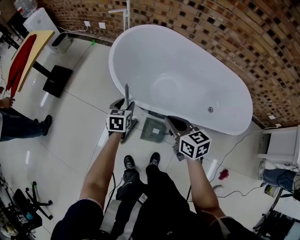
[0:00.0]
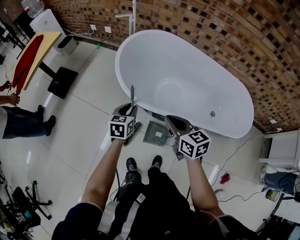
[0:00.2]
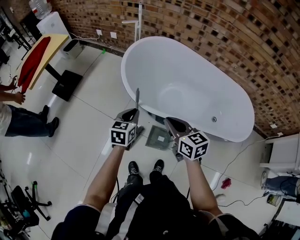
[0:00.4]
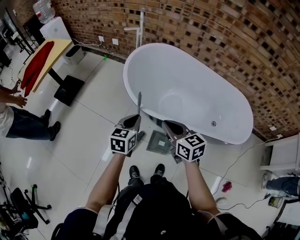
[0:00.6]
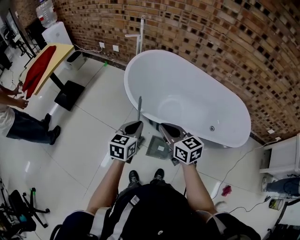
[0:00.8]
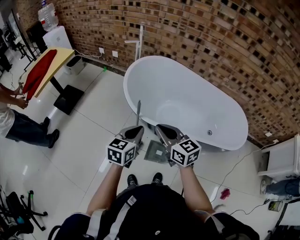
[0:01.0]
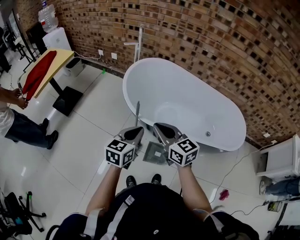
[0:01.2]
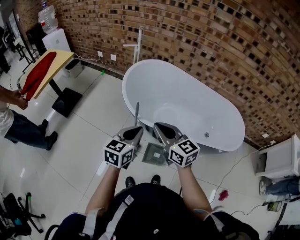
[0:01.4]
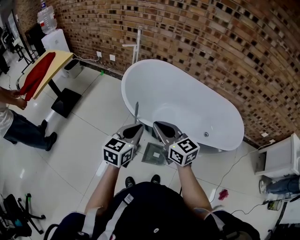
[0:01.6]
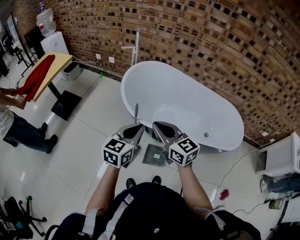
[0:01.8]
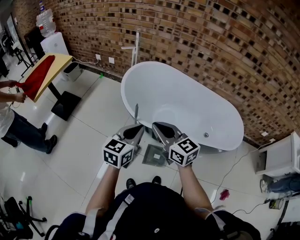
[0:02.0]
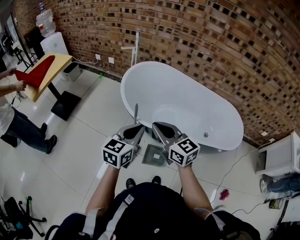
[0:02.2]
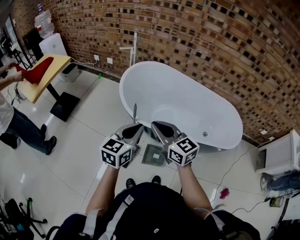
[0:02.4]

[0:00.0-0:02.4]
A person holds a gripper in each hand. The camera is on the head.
0:00.0 to 0:01.2: The right gripper goes some 15 cm upward and to the left, and turns by roughly 20 degrees. Meanwhile the left gripper heads upward and backward, covering about 25 cm, swivels about 20 degrees, and closes.
0:01.2 to 0:02.4: The left gripper shifts some 5 cm upward.

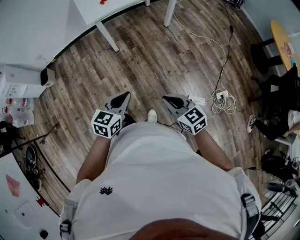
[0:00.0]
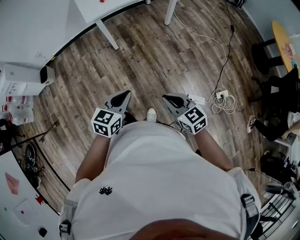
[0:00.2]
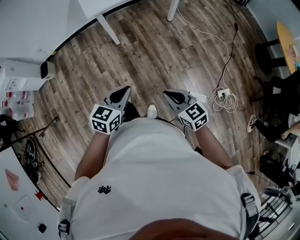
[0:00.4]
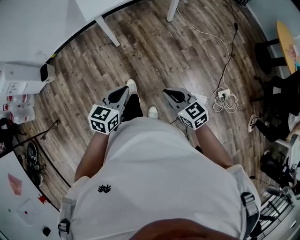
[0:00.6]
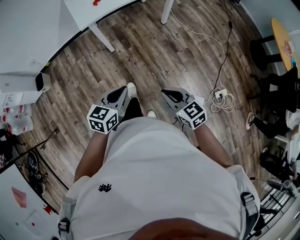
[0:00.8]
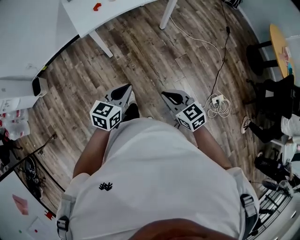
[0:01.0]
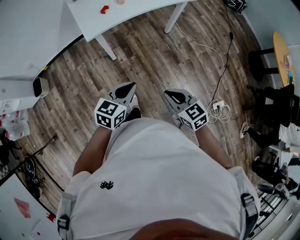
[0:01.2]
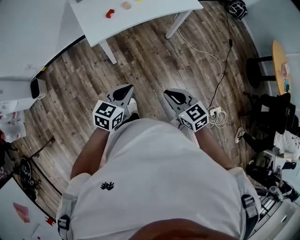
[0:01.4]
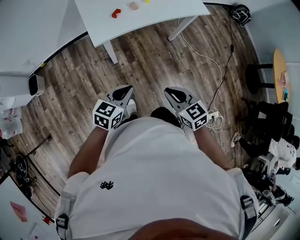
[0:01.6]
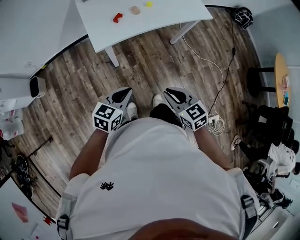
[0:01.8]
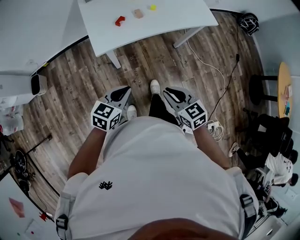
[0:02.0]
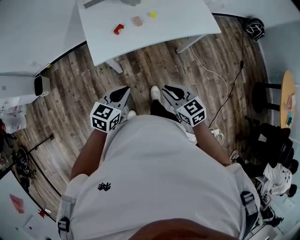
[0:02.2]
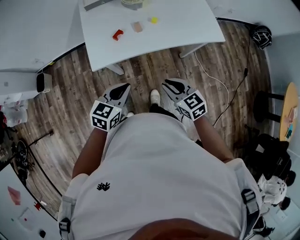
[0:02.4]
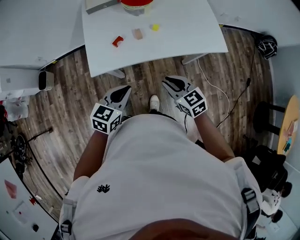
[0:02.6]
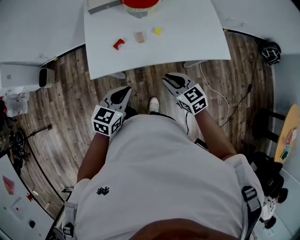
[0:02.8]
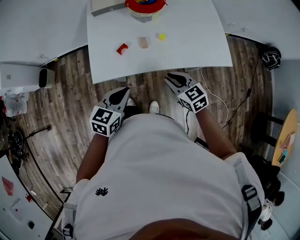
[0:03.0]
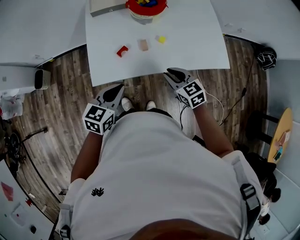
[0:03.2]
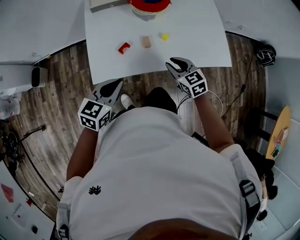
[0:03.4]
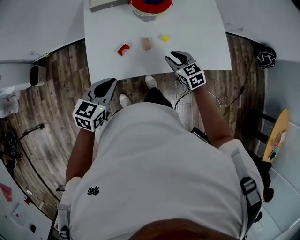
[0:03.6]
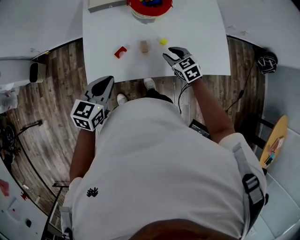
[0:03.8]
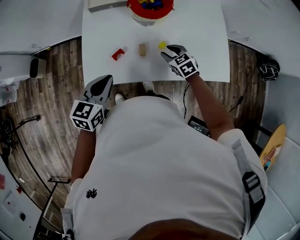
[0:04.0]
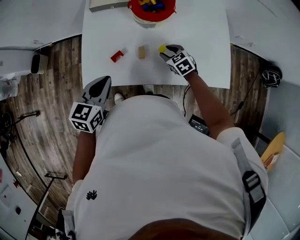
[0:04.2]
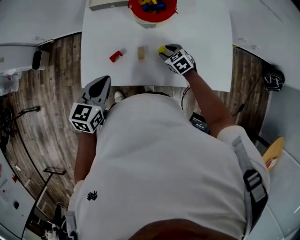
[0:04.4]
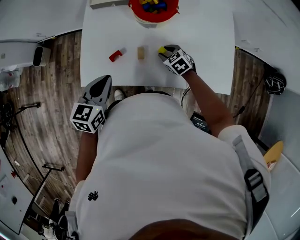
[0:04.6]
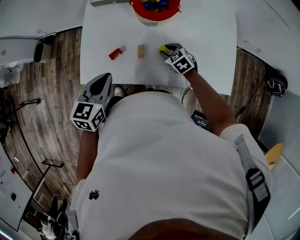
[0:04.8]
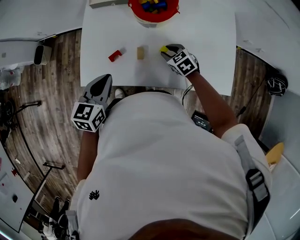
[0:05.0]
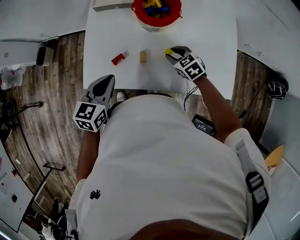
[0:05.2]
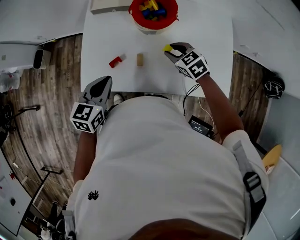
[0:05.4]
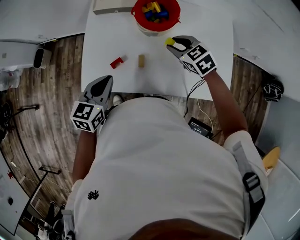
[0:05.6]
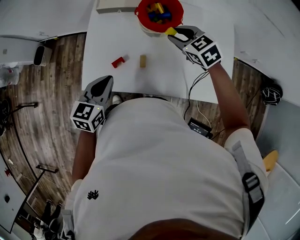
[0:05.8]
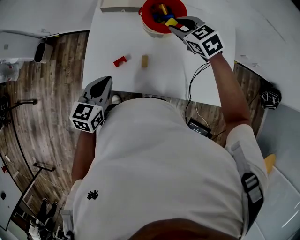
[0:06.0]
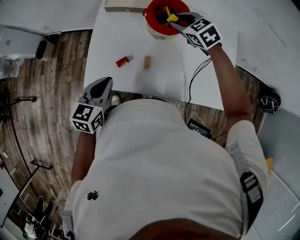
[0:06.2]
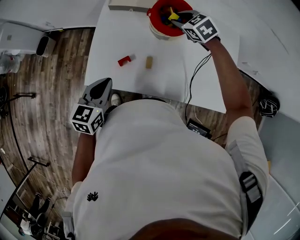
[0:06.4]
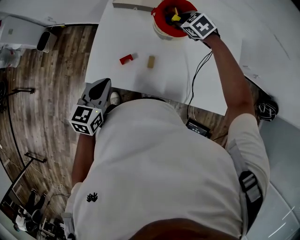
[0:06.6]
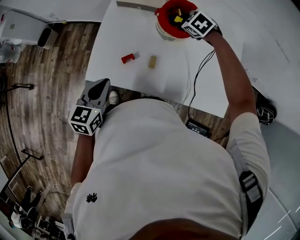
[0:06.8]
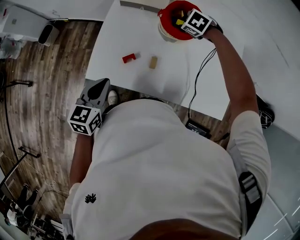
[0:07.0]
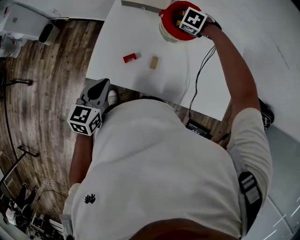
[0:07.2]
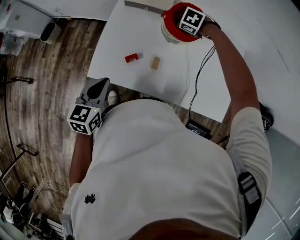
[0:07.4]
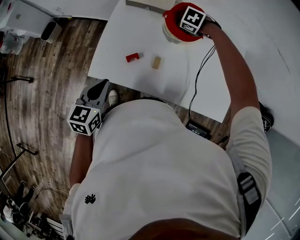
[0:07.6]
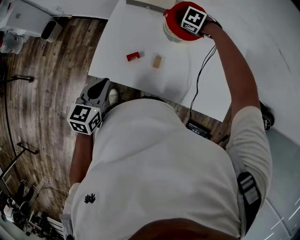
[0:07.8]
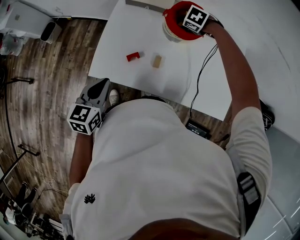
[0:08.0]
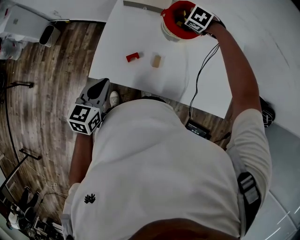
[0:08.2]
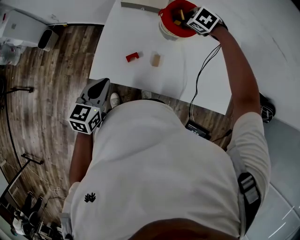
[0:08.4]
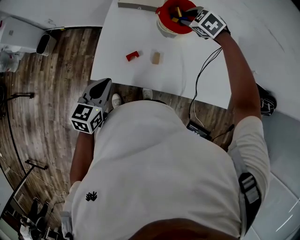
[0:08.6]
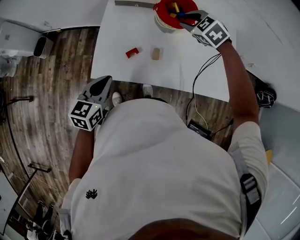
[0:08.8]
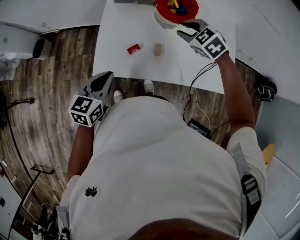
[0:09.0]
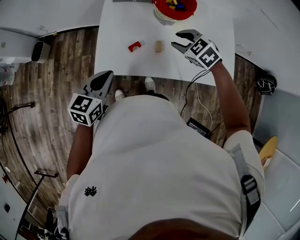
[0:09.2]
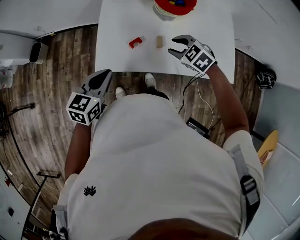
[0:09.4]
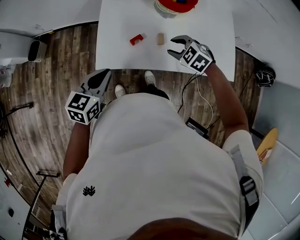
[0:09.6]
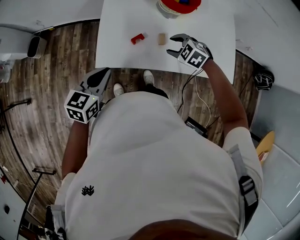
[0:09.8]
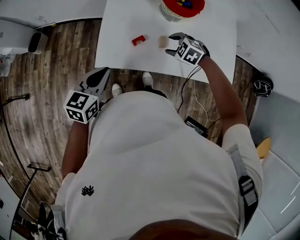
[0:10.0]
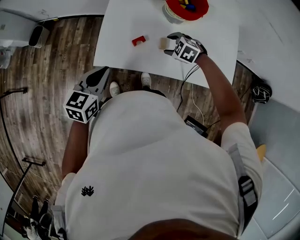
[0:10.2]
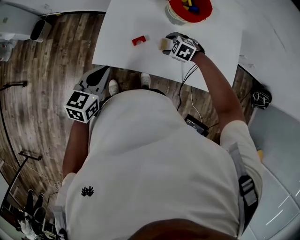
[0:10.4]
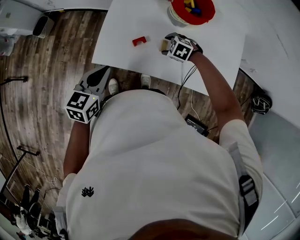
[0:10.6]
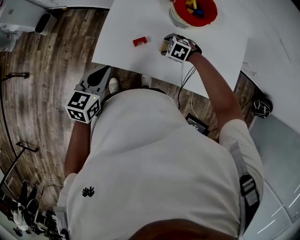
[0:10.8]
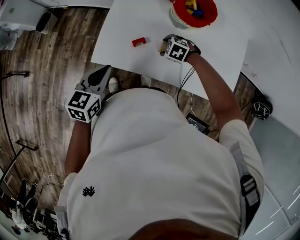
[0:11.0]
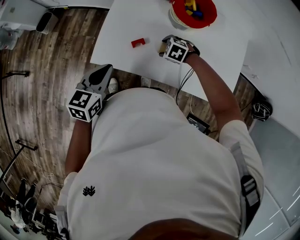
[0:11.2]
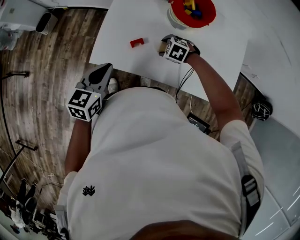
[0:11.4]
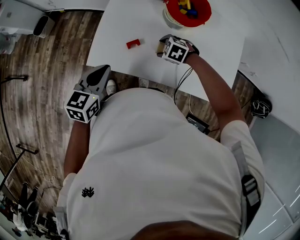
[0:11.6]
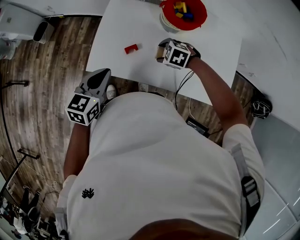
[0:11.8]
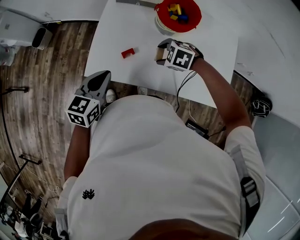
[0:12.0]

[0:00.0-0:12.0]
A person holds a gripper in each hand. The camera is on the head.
0:00.0 to 0:01.6: Both grippers travel together forward, some 30 cm.
0:01.6 to 0:03.0: The grippers both shift forward by some 30 cm. The left gripper changes its angle by about 20 degrees.
0:03.0 to 0:04.4: The right gripper is displaced forward and downward by some 30 cm, and changes its angle by roughly 30 degrees. The left gripper is displaced forward by some 15 cm.
0:04.4 to 0:06.0: The right gripper travels upward and forward by some 25 cm.
0:06.0 to 0:07.6: The right gripper is displaced downward by some 15 cm, and angles its fingers downward, by approximately 40 degrees, while the left gripper moves some 5 cm.
0:07.6 to 0:09.0: The right gripper shifts by some 20 cm, and points its fingers roughly 30 degrees further upward.
0:09.0 to 0:10.4: The right gripper is displaced downward by about 20 cm, swivels about 30 degrees, and opens.
0:10.4 to 0:12.0: The right gripper travels upward by some 5 cm. The left gripper moves roughly 5 cm.

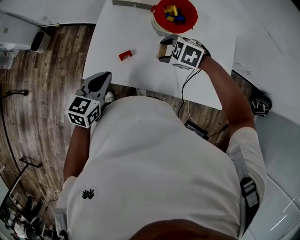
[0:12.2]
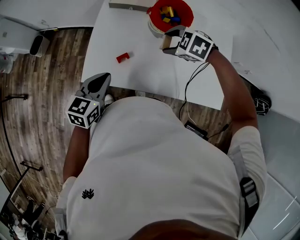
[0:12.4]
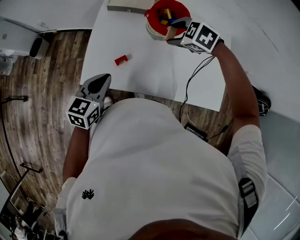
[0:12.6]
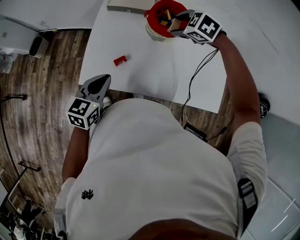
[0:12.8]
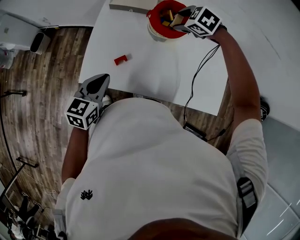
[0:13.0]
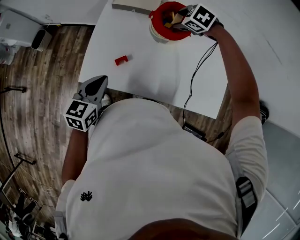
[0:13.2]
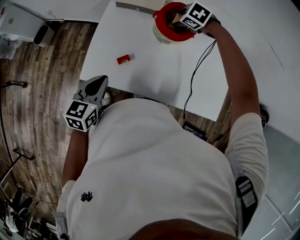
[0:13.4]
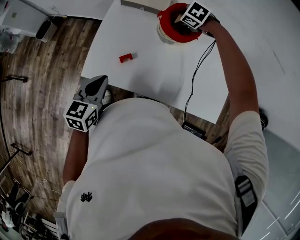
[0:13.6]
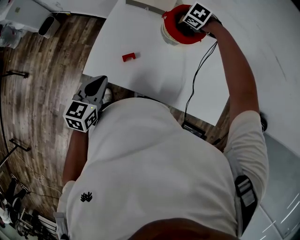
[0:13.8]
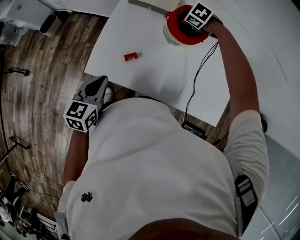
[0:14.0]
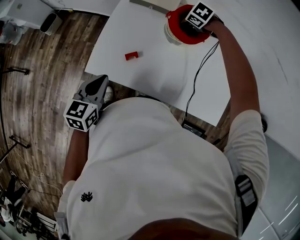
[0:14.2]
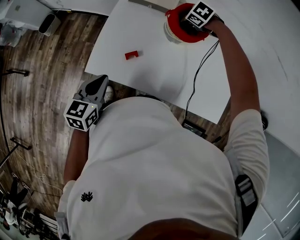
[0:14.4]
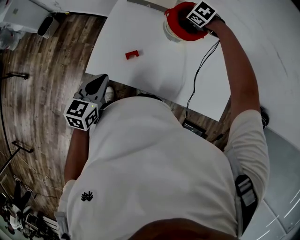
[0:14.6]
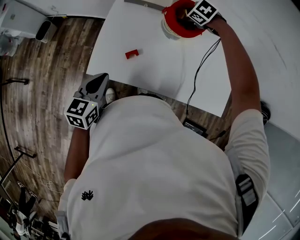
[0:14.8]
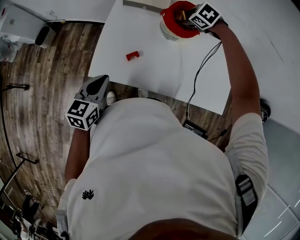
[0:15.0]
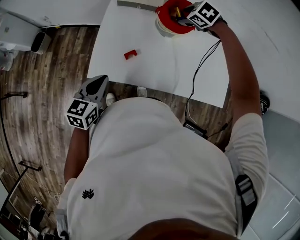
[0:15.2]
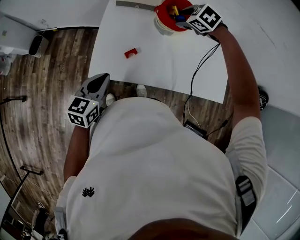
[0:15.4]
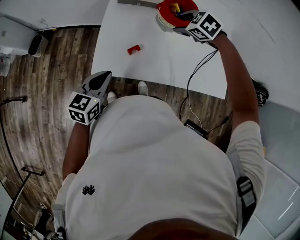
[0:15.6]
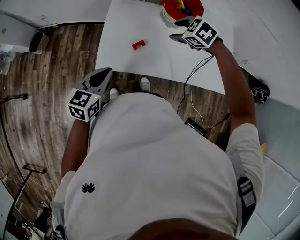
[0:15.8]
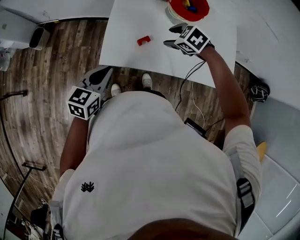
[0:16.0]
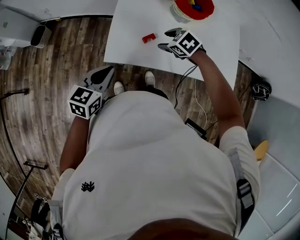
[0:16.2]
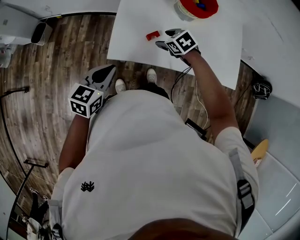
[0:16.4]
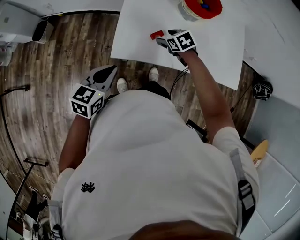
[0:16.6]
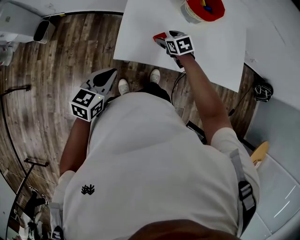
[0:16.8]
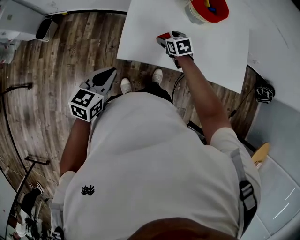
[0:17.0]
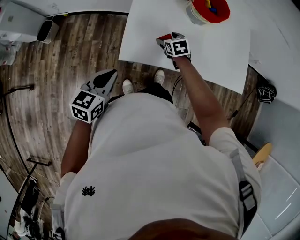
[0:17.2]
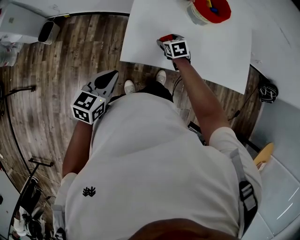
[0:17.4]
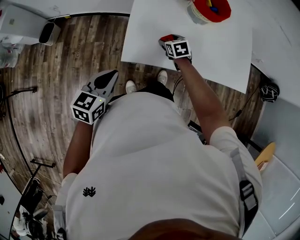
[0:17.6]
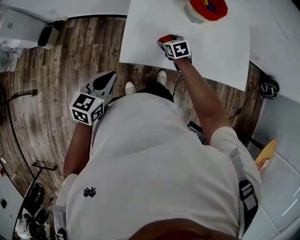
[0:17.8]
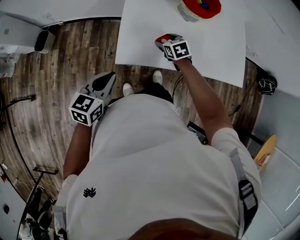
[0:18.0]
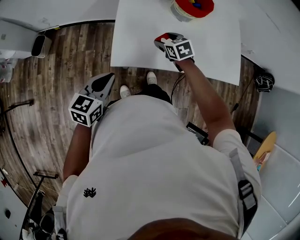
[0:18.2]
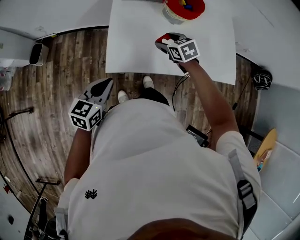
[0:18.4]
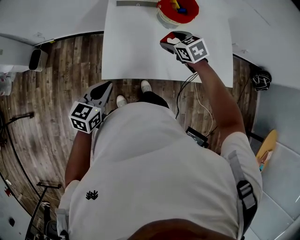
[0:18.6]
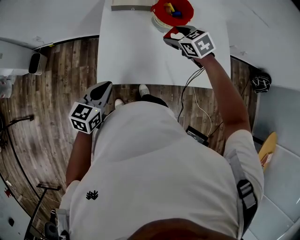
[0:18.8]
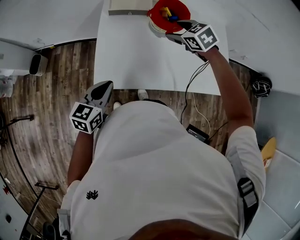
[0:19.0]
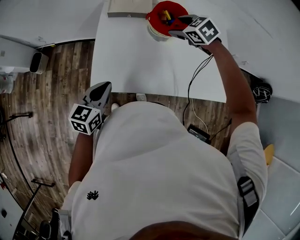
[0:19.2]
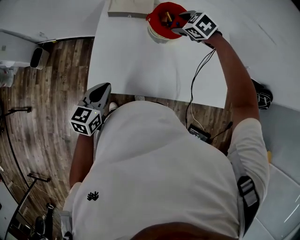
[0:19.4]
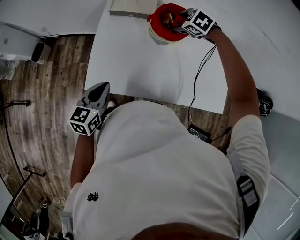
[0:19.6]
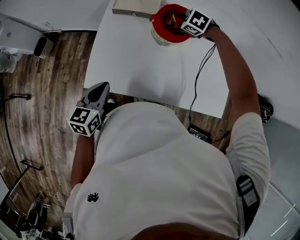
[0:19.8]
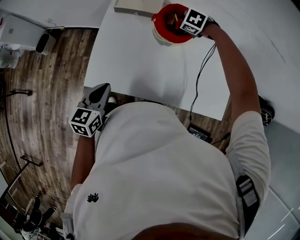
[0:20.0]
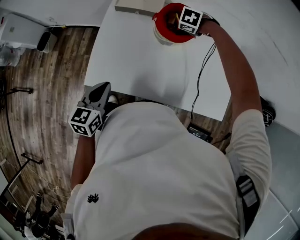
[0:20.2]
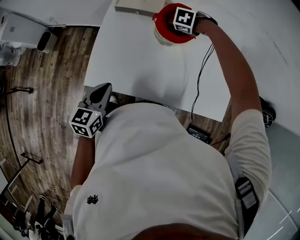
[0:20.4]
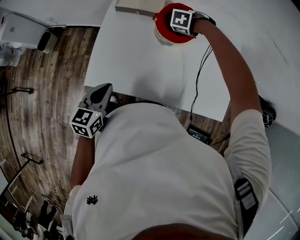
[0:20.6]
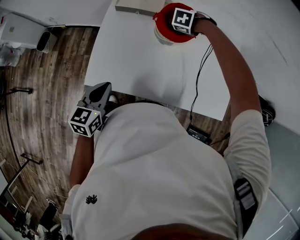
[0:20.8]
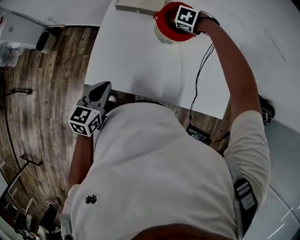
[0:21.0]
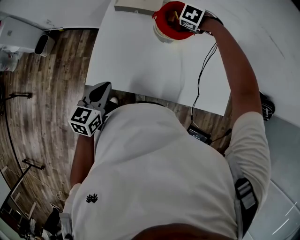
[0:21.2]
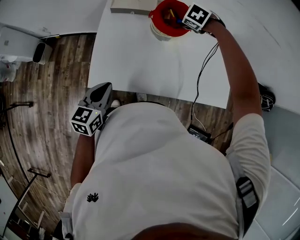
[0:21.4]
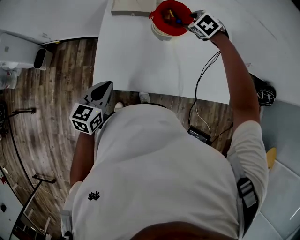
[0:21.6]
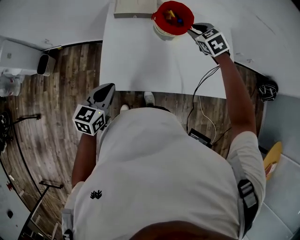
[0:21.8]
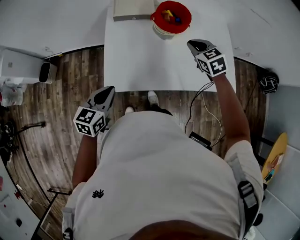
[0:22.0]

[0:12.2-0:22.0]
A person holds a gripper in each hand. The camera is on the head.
0:12.2 to 0:13.6: The right gripper travels upward and back again, roughly 5 cm each way.
0:13.6 to 0:15.0: The grippers make only small movements.
0:15.0 to 0:16.4: The right gripper travels backward, to the left and downward by about 30 cm, and turns by roughly 20 degrees. The left gripper is displaced to the left by about 10 cm.
0:16.4 to 0:17.8: The right gripper moves downward, approximately 5 cm, and changes its angle by about 30 degrees, while the left gripper travels to the left by about 5 cm.
0:17.8 to 0:19.2: The right gripper is displaced upward, to the right and forward by some 30 cm, and changes its angle by about 30 degrees. The left gripper heads to the right and forward, covering about 15 cm.
0:19.2 to 0:20.6: The left gripper moves about 5 cm. Meanwhile the right gripper moves downward, some 15 cm, and swivels roughly 50 degrees.
0:20.6 to 0:22.0: The right gripper changes place by about 25 cm, points its fingers about 40 degrees further upward, and closes, while the left gripper shifts by roughly 10 cm.
